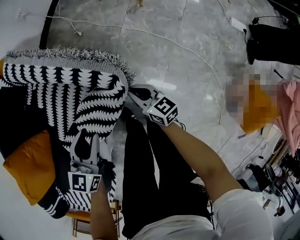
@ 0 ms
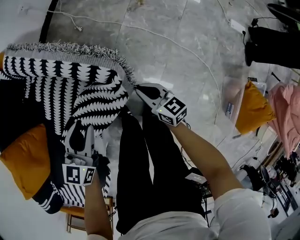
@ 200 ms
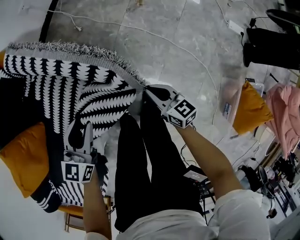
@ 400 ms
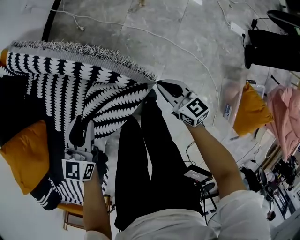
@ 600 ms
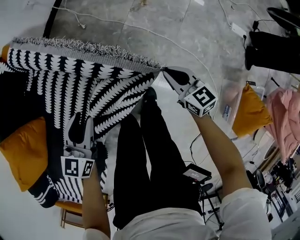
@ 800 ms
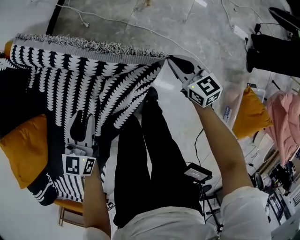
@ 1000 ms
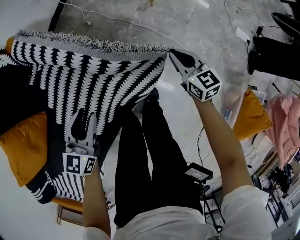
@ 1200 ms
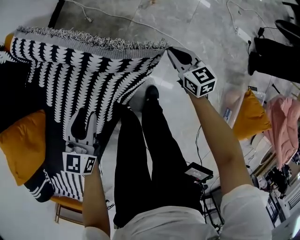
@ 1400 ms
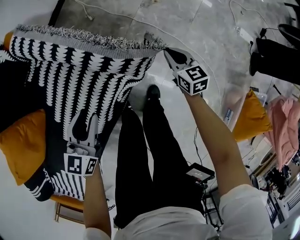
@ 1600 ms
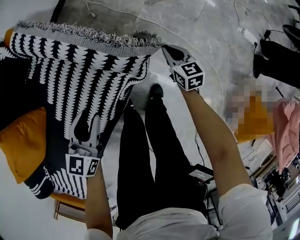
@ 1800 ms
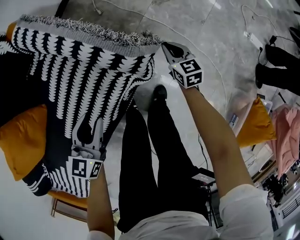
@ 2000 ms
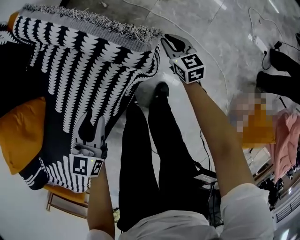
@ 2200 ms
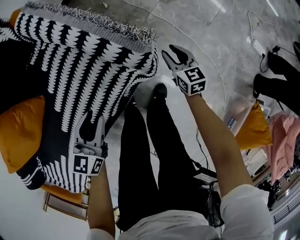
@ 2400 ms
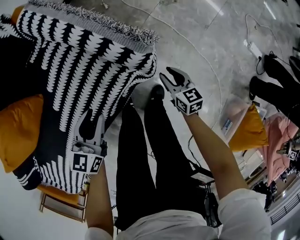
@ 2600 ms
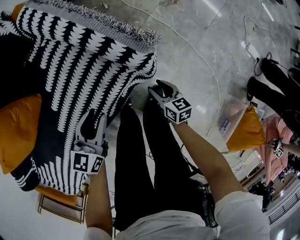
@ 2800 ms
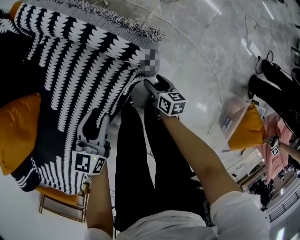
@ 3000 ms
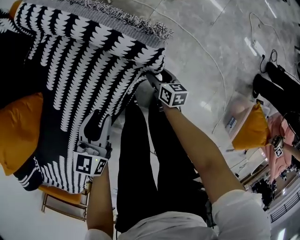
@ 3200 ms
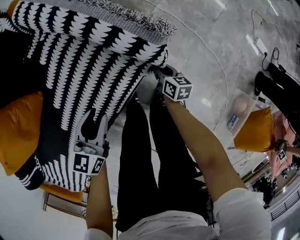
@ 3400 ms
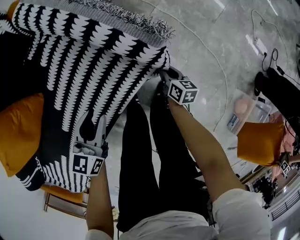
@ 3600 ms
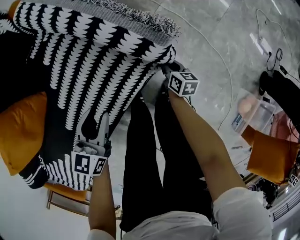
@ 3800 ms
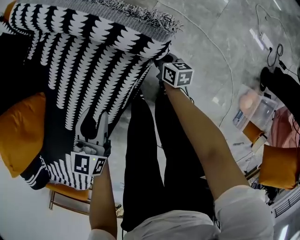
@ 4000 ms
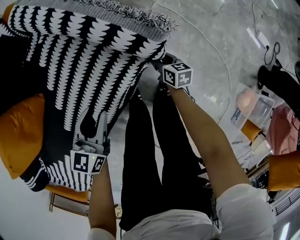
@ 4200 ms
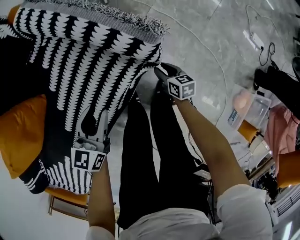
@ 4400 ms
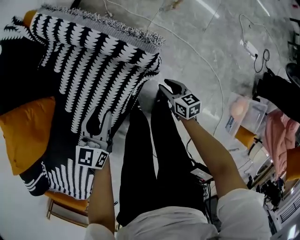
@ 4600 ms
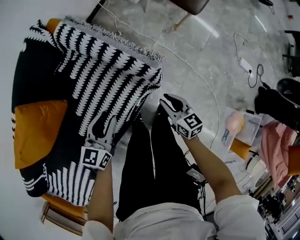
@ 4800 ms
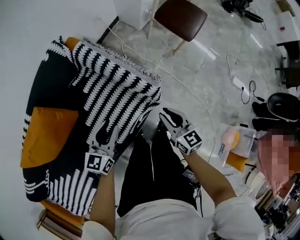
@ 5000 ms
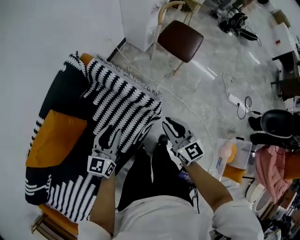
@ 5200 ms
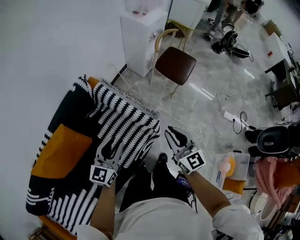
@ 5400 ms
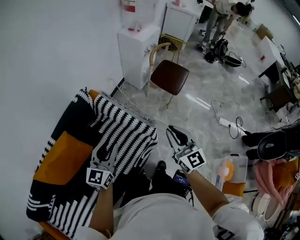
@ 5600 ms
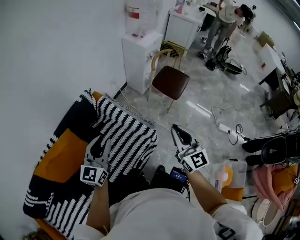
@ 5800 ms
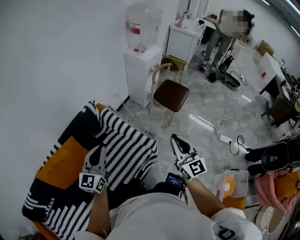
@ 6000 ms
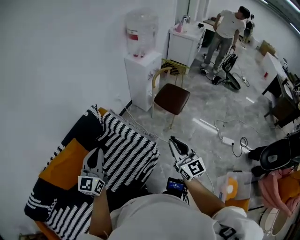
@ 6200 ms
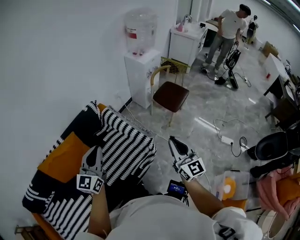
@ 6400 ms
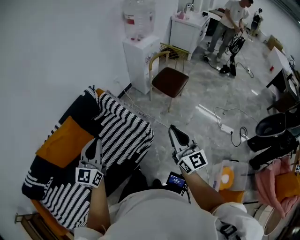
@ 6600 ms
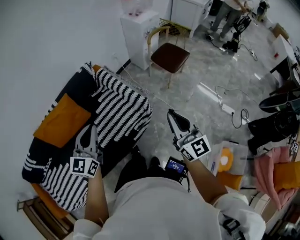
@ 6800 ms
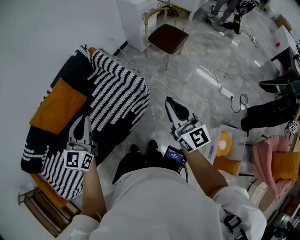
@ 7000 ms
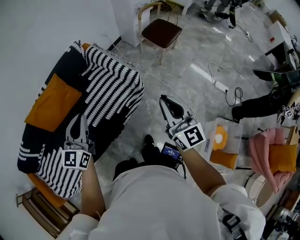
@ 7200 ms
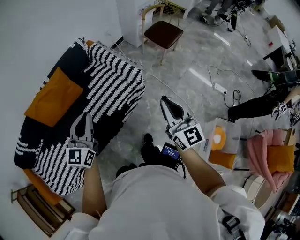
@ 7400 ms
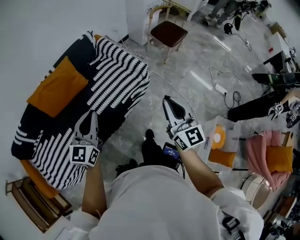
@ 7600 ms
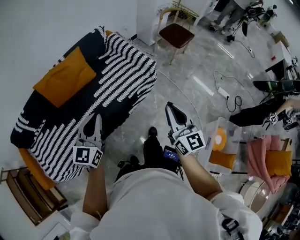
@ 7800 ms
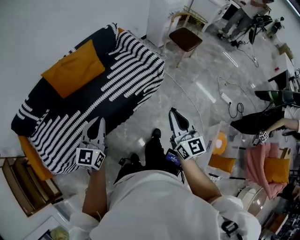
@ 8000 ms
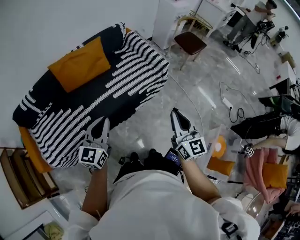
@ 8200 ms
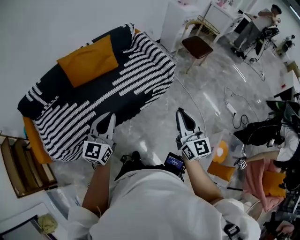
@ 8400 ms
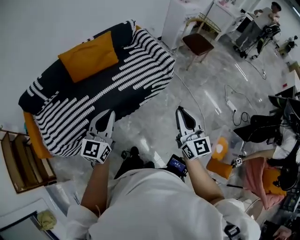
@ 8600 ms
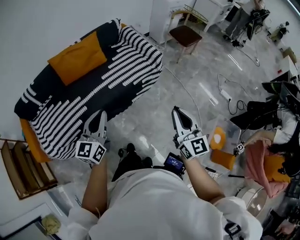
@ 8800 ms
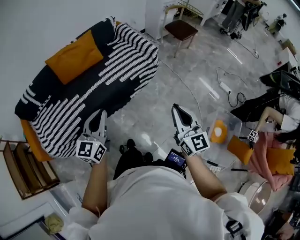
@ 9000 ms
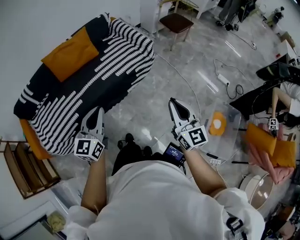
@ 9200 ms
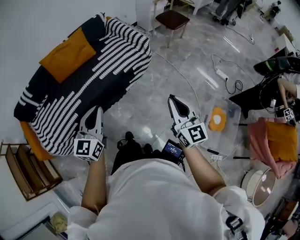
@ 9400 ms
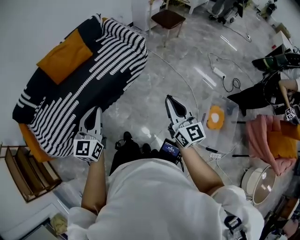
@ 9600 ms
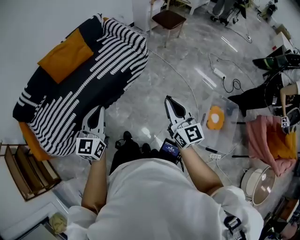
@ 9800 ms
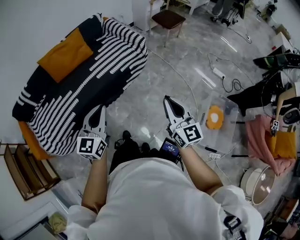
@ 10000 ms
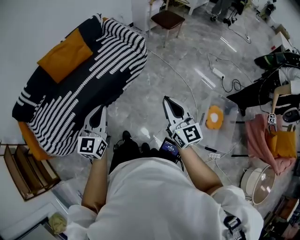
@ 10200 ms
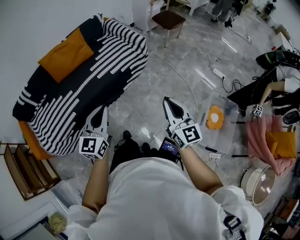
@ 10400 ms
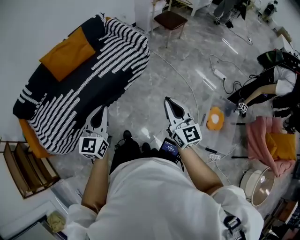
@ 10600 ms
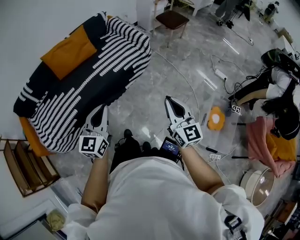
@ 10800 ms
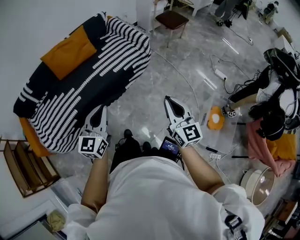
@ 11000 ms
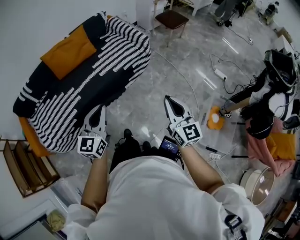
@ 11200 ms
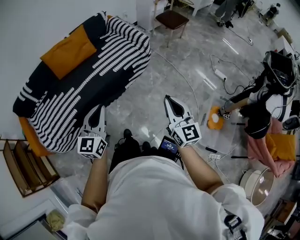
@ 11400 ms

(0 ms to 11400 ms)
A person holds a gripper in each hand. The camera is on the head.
0 ms - 1400 ms: The right gripper goes about 20 cm to the right.
1400 ms - 2800 ms: The left gripper travels backward and downward by approximately 10 cm; the right gripper travels backward, to the left and downward by about 20 cm, rotates approximately 20 degrees, and opens up.
2800 ms - 4200 ms: The right gripper goes approximately 15 cm forward and downward, and closes, then reopens.
4200 ms - 5600 ms: The right gripper heads upward, covering some 70 cm, and angles its fingers upward, by some 40 degrees. Meanwhile the left gripper goes approximately 50 cm upward, and rotates some 30 degrees.
5600 ms - 7200 ms: The right gripper heads backward and to the right, covering about 25 cm. Meanwhile the left gripper shifts about 25 cm backward, and closes.
7200 ms - 8600 ms: The left gripper goes about 35 cm backward, while the right gripper heads backward and to the left, covering roughly 35 cm.
8600 ms - 10000 ms: The right gripper moves backward and to the right, about 20 cm. Meanwhile the left gripper moves to the right and backward, about 20 cm.
10000 ms - 11400 ms: There are only small adjustments of the grippers.

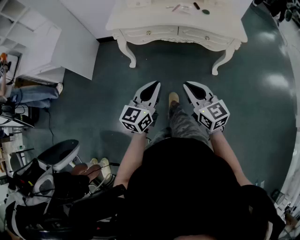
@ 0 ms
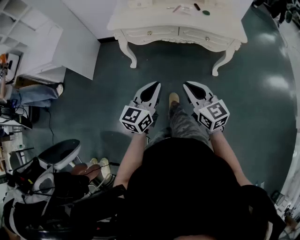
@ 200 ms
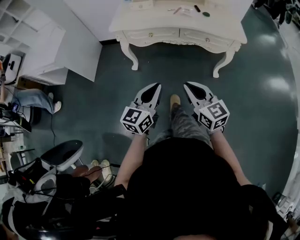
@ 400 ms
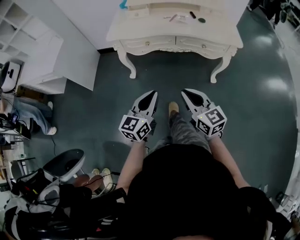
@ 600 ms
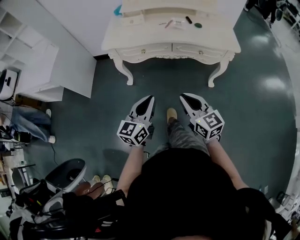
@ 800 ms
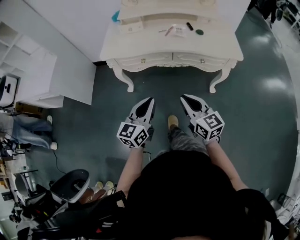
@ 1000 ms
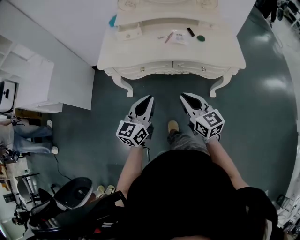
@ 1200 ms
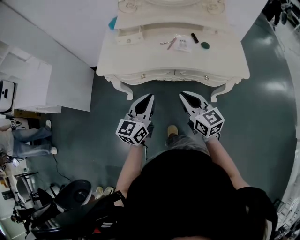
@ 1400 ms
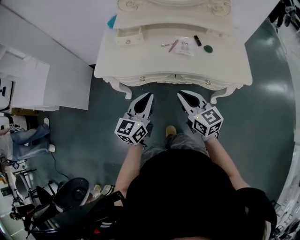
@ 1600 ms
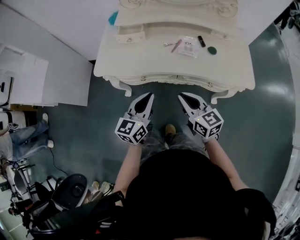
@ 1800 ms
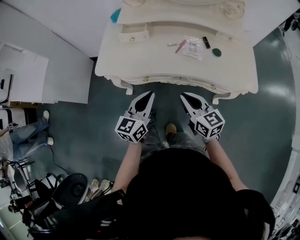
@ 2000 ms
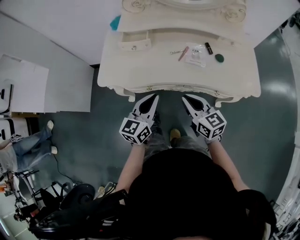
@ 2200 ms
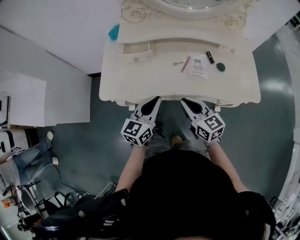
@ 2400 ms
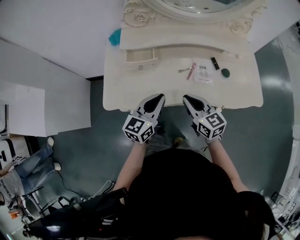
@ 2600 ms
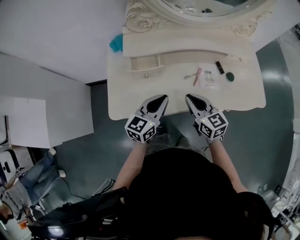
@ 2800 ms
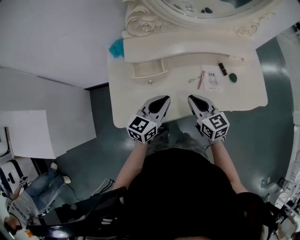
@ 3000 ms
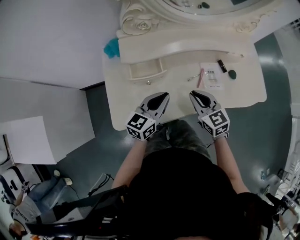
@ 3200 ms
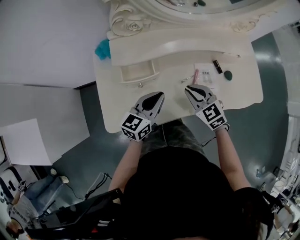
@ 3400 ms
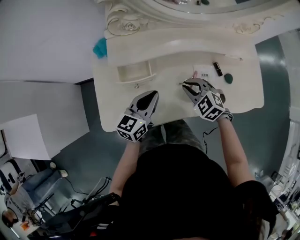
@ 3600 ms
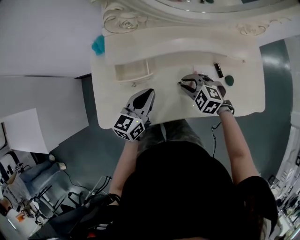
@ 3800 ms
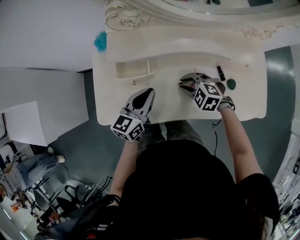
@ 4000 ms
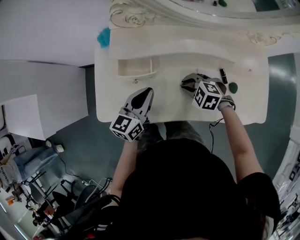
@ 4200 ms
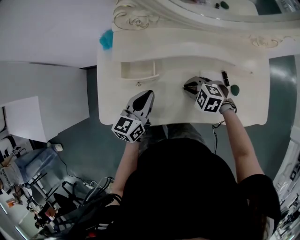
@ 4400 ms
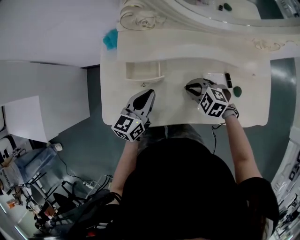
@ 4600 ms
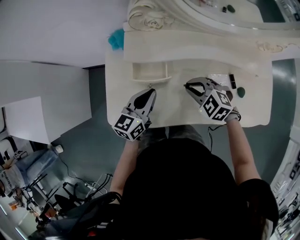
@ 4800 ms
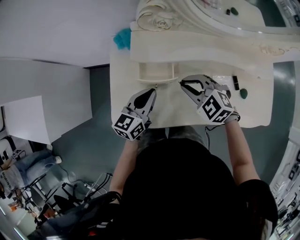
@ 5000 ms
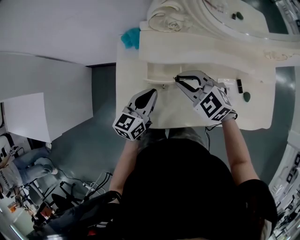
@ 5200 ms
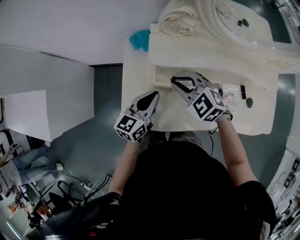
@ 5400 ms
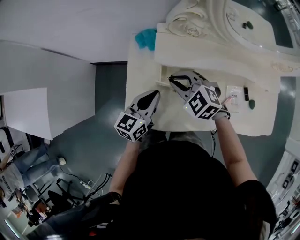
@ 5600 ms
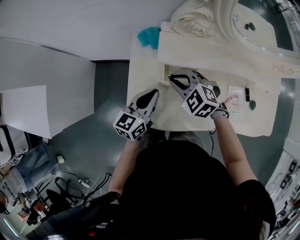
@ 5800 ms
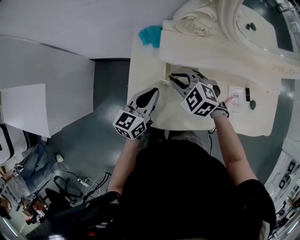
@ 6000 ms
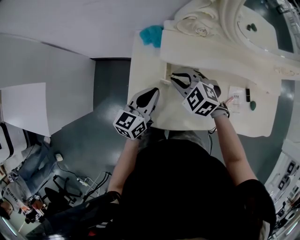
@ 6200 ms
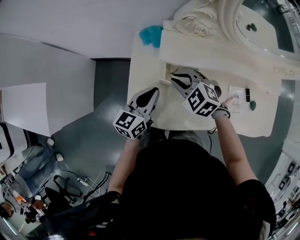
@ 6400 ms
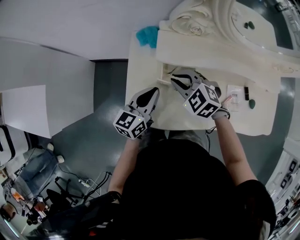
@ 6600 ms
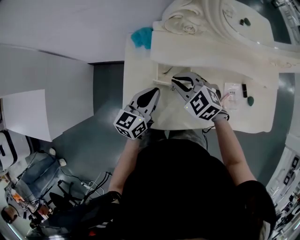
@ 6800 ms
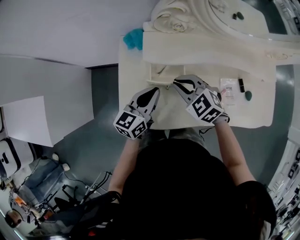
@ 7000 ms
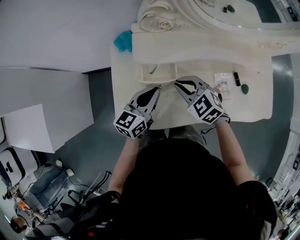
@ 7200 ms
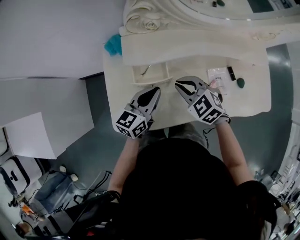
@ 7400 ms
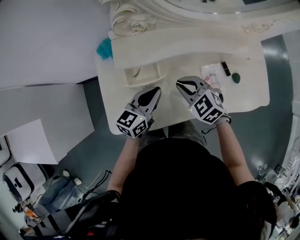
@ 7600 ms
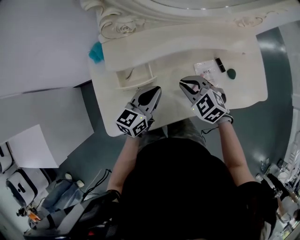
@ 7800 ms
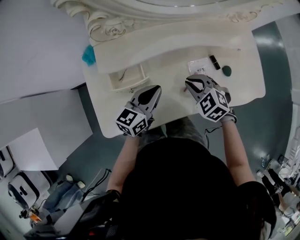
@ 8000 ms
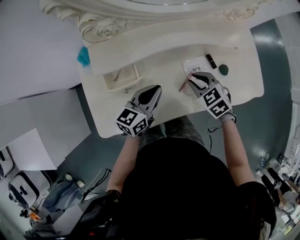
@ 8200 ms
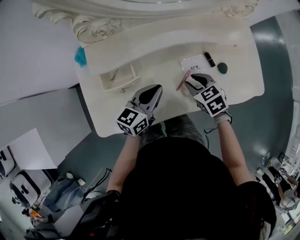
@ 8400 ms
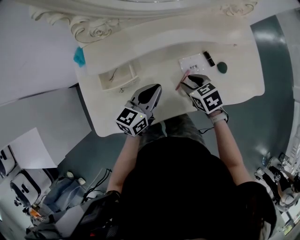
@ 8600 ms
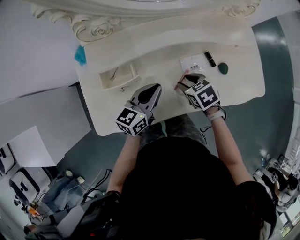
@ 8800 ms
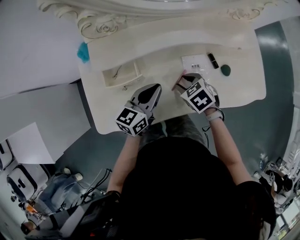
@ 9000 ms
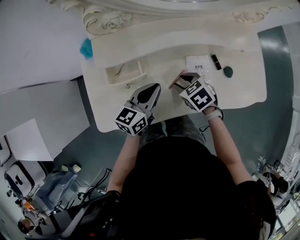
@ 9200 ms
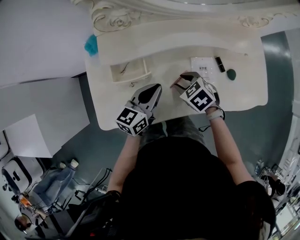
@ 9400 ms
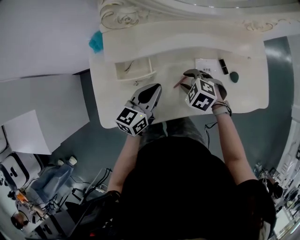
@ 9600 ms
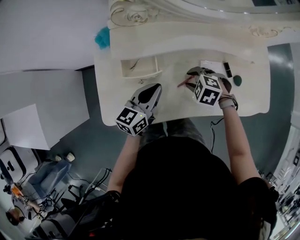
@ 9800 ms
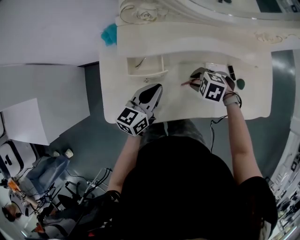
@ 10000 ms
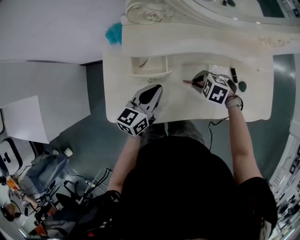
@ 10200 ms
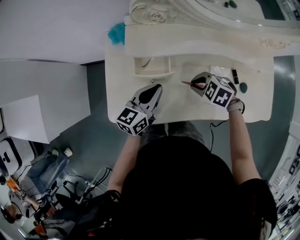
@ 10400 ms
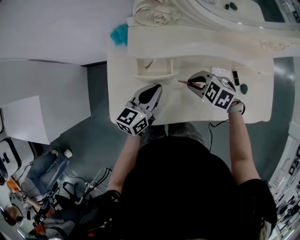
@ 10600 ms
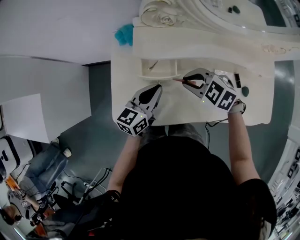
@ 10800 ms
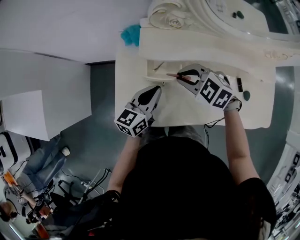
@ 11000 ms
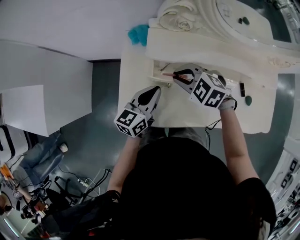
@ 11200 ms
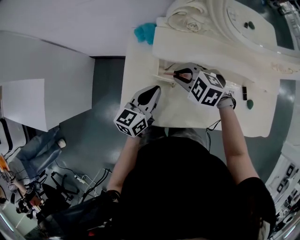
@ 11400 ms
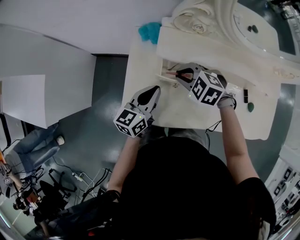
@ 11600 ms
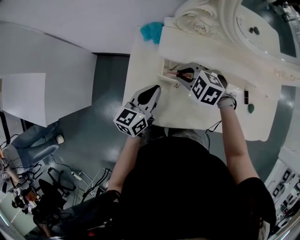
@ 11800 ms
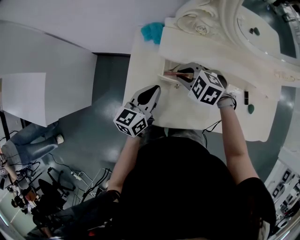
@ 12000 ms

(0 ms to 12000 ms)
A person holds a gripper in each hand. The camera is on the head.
0 ms - 1600 ms: Both grippers travel together forward, approximately 30 cm.
1600 ms - 3000 ms: The left gripper heads forward, covering about 25 cm, and rotates some 20 degrees, while the right gripper heads forward and to the left, covering some 25 cm.
3000 ms - 4400 ms: The left gripper changes place by approximately 5 cm. Meanwhile the right gripper is displaced downward by approximately 10 cm, and points its fingers roughly 40 degrees further downward.
4400 ms - 6000 ms: The right gripper heads to the left and forward, covering approximately 25 cm. The left gripper moves to the left and forward, some 15 cm.
6000 ms - 7600 ms: The right gripper shifts some 15 cm to the right and backward, and turns by approximately 20 degrees. The left gripper moves to the right, roughly 15 cm.
7600 ms - 9000 ms: The left gripper travels to the right by approximately 10 cm. The right gripper is displaced to the right and downward by approximately 15 cm, turns by about 30 degrees, and opens.
9000 ms - 10400 ms: The left gripper shifts by approximately 10 cm, while the right gripper moves approximately 5 cm, rotates some 40 degrees, and closes.
10400 ms - 12000 ms: The left gripper moves to the left, approximately 10 cm, while the right gripper heads to the left and forward, covering approximately 20 cm.
